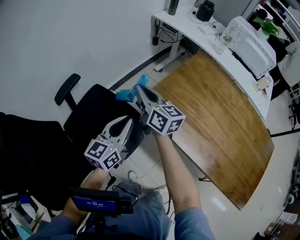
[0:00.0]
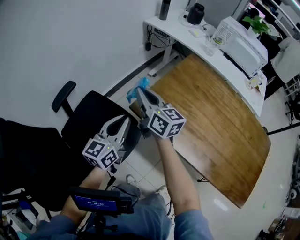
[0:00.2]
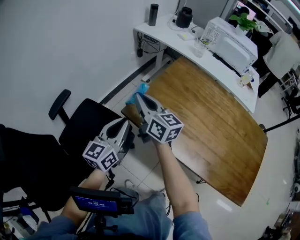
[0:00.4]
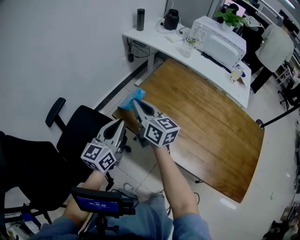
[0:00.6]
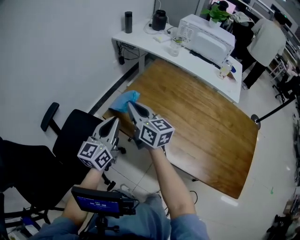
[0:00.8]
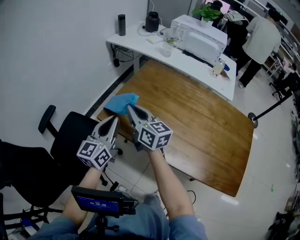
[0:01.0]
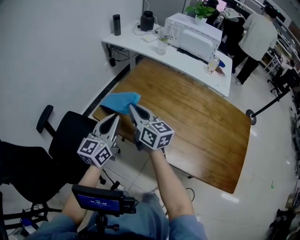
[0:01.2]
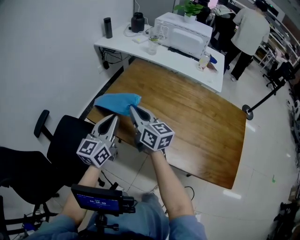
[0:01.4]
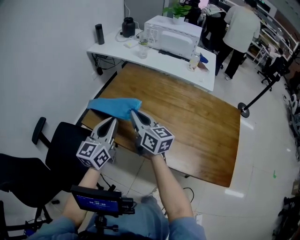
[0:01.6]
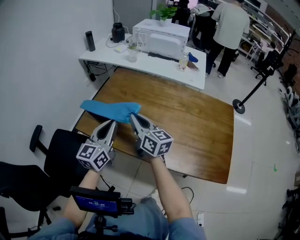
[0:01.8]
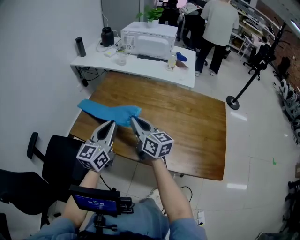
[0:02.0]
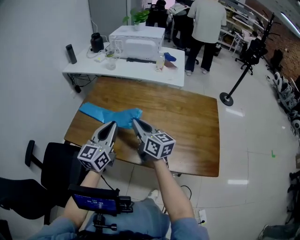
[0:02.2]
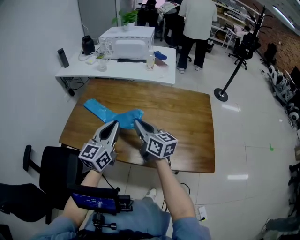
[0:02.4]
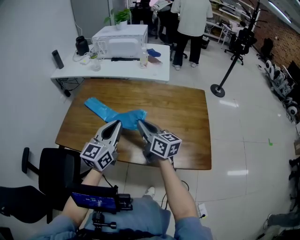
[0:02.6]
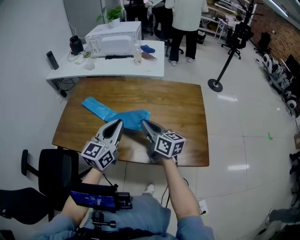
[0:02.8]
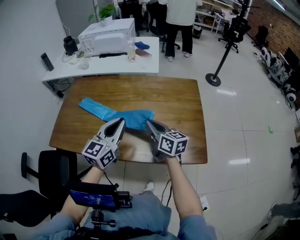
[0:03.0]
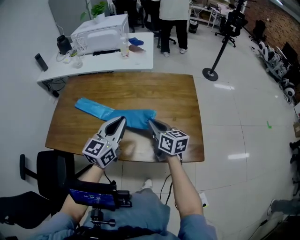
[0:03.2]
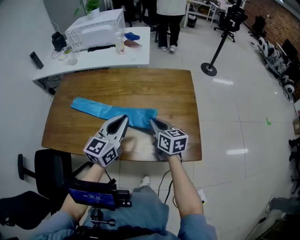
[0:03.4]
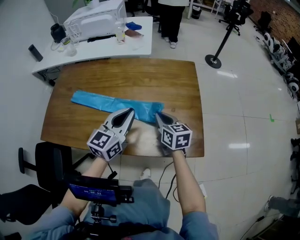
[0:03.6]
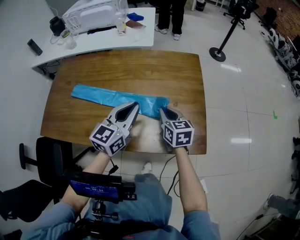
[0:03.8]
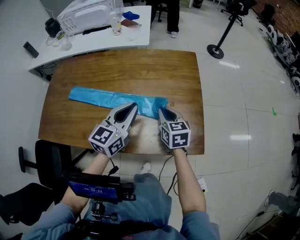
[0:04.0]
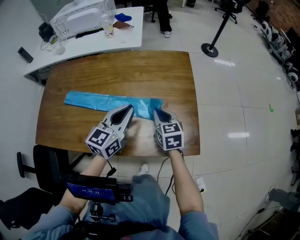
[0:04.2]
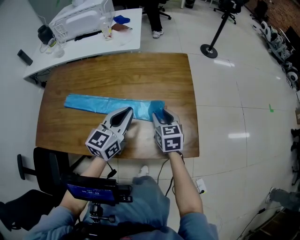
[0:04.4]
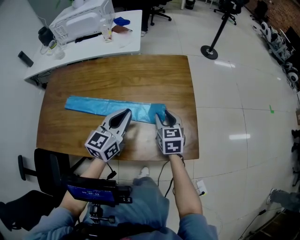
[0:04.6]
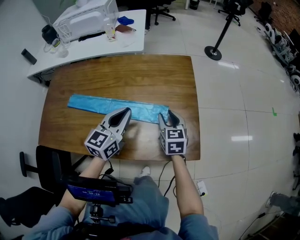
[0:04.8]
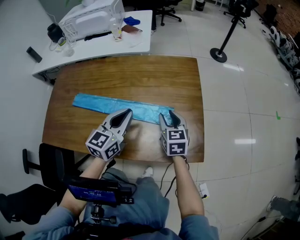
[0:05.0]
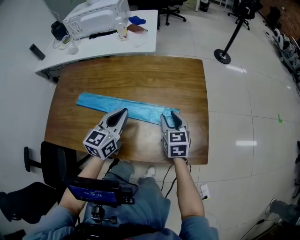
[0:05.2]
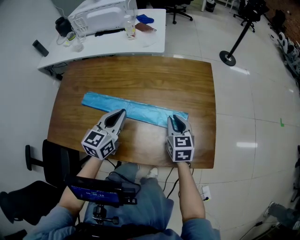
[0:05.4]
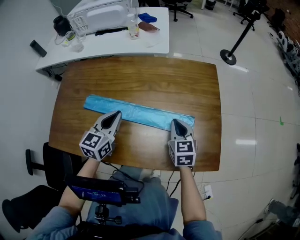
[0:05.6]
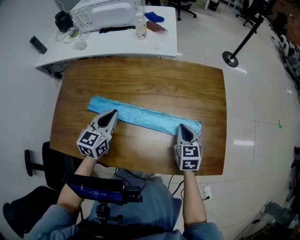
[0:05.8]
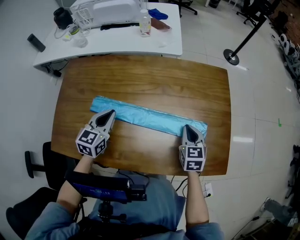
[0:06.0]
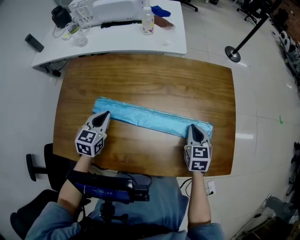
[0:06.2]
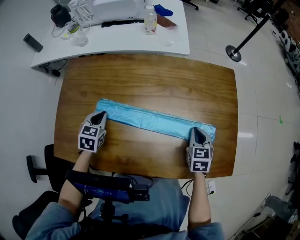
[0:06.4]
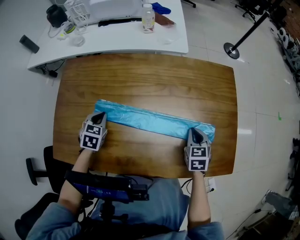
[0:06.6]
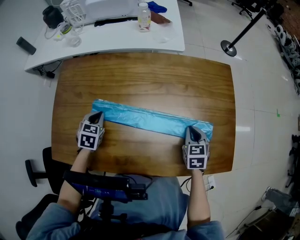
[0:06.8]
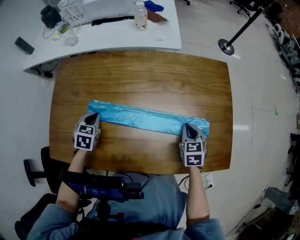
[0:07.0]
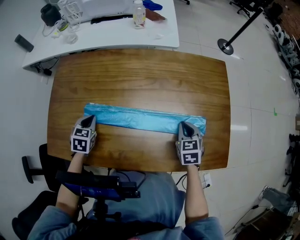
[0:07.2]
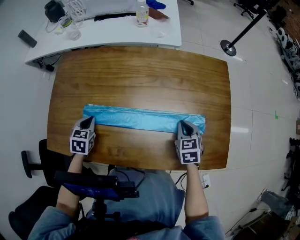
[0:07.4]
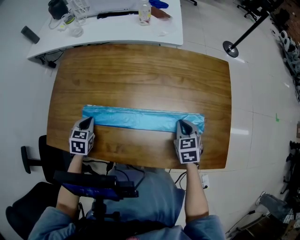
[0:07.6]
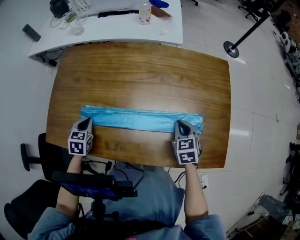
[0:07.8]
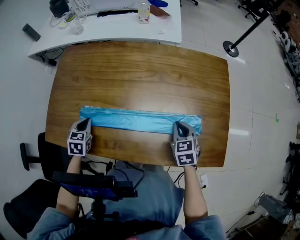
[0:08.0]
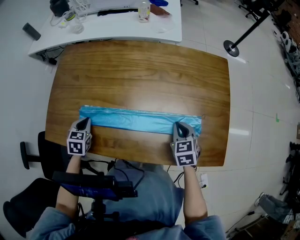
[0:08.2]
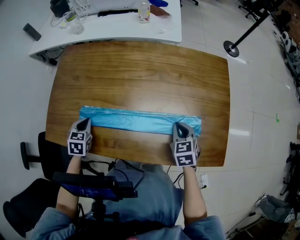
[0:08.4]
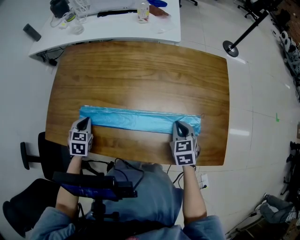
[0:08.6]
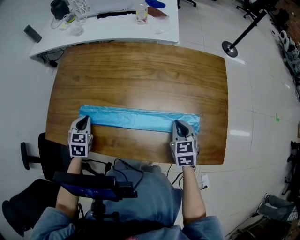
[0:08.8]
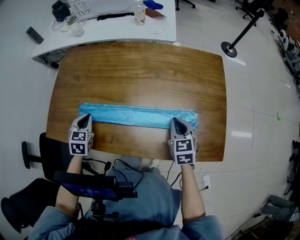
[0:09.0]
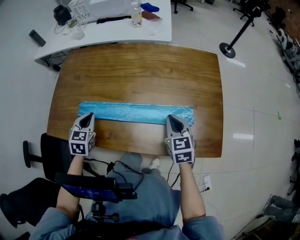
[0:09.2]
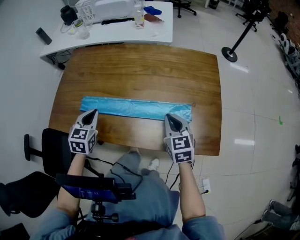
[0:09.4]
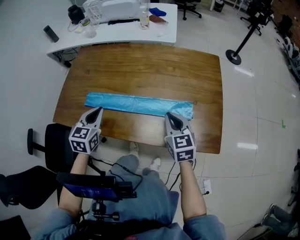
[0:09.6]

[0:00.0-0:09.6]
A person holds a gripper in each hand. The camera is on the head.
0:00.0 to 0:01.6: The grippers both shift to the right by roughly 30 cm.
0:01.6 to 0:03.2: Both grippers travel together to the right, approximately 35 cm. The left gripper swivels some 30 degrees. Meanwhile the right gripper changes its angle by about 30 degrees.
0:03.2 to 0:04.8: The right gripper heads to the right and downward, covering about 15 cm, turns by about 30 degrees, and opens up. Meanwhile the left gripper moves to the right, downward and forward, about 10 cm.
0:04.8 to 0:06.4: The left gripper moves to the left, roughly 35 cm, and tilts its fingers approximately 30 degrees downward. Meanwhile the right gripper heads to the left, covering approximately 10 cm, and closes its fingers.
0:06.4 to 0:08.0: The right gripper changes place by approximately 5 cm, while the left gripper is displaced backward by approximately 10 cm.
0:08.0 to 0:09.6: The left gripper goes some 20 cm upward, to the right and backward, and swivels about 20 degrees; the right gripper heads upward and backward, covering about 10 cm, and changes its angle by roughly 20 degrees.

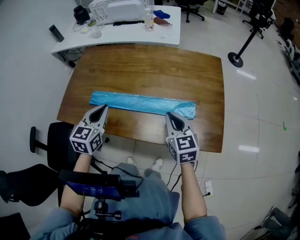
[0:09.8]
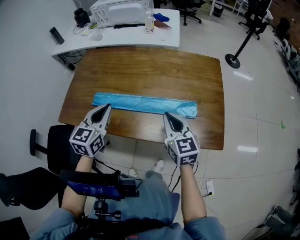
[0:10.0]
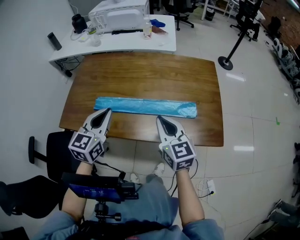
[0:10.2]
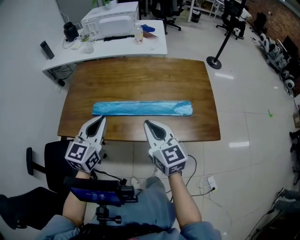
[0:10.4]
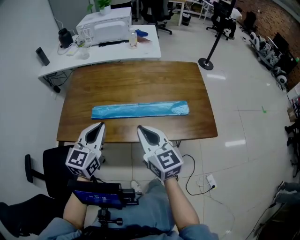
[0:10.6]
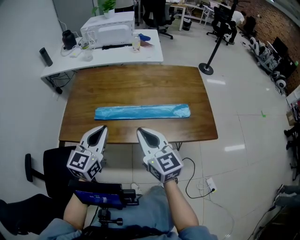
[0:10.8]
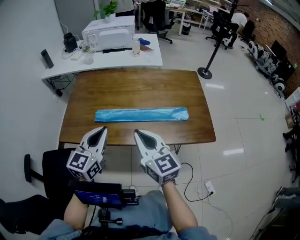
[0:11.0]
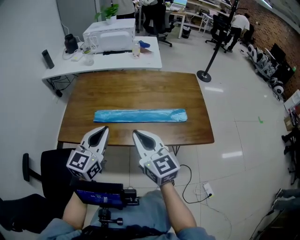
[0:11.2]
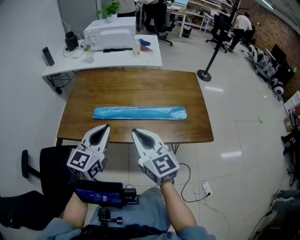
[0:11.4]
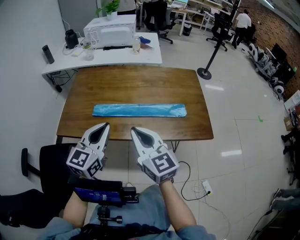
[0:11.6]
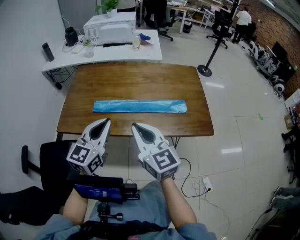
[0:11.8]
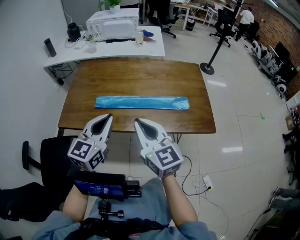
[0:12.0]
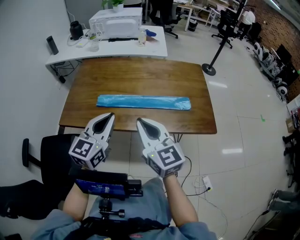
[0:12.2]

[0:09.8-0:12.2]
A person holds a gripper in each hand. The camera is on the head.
0:09.8 to 0:11.0: The right gripper is displaced to the left, upward and backward by some 25 cm, while the left gripper is displaced backward, upward and to the left by about 15 cm, and rotates approximately 20 degrees.
0:11.0 to 0:12.2: The grippers make only small movements.

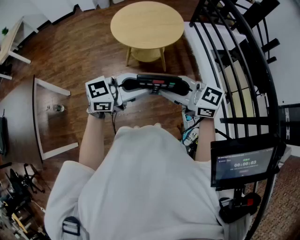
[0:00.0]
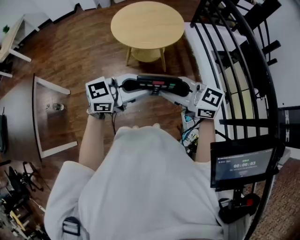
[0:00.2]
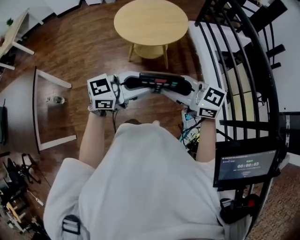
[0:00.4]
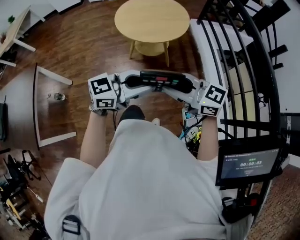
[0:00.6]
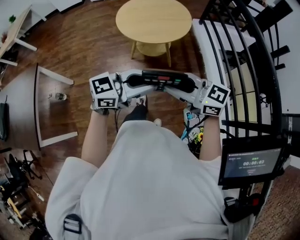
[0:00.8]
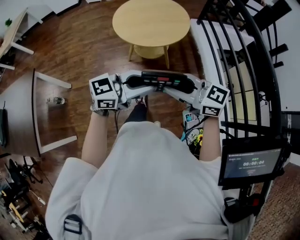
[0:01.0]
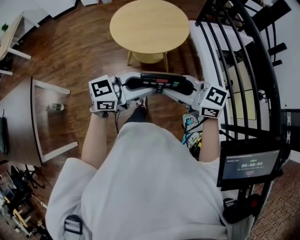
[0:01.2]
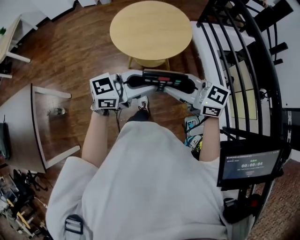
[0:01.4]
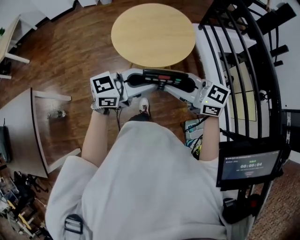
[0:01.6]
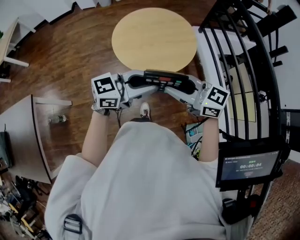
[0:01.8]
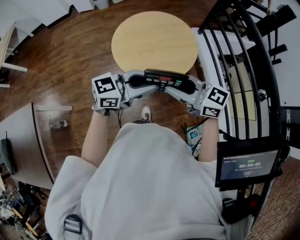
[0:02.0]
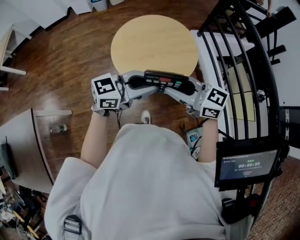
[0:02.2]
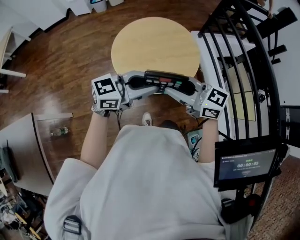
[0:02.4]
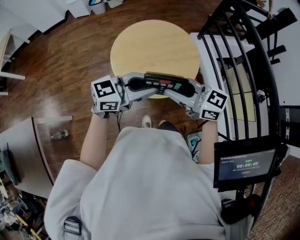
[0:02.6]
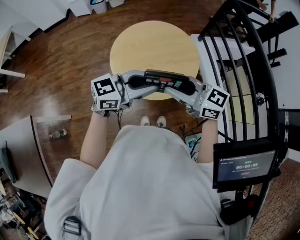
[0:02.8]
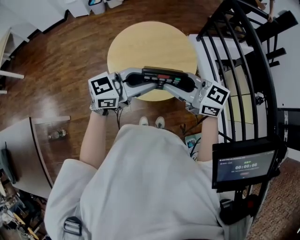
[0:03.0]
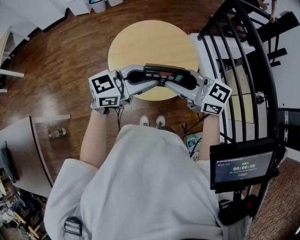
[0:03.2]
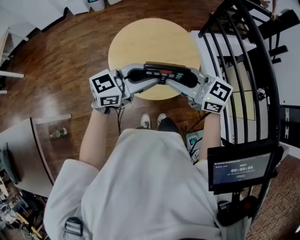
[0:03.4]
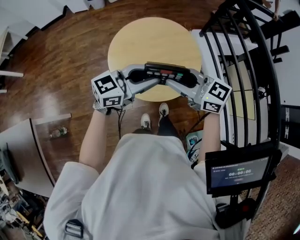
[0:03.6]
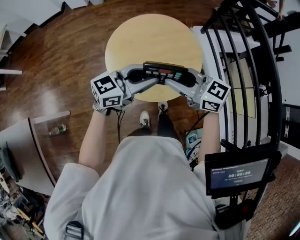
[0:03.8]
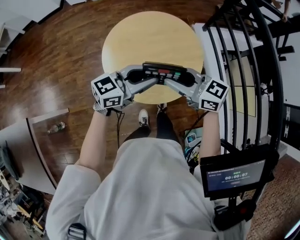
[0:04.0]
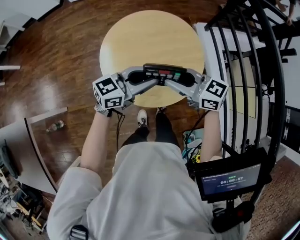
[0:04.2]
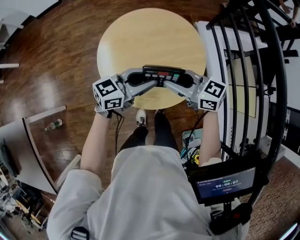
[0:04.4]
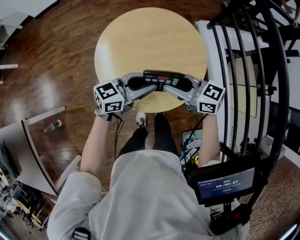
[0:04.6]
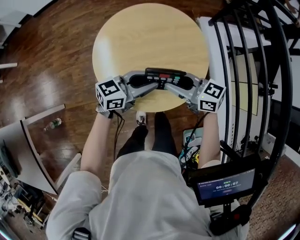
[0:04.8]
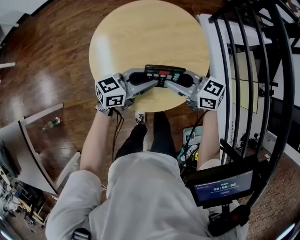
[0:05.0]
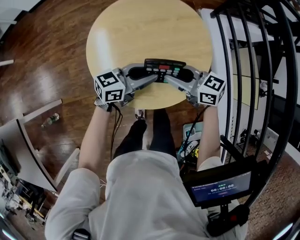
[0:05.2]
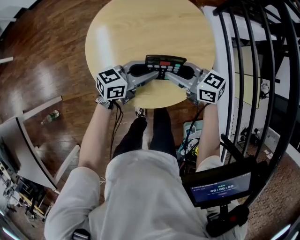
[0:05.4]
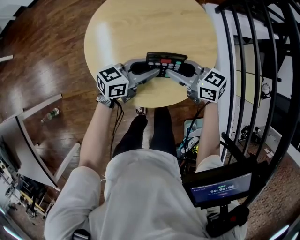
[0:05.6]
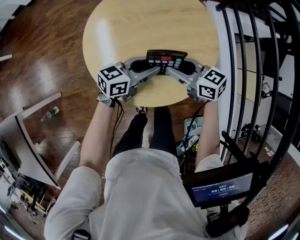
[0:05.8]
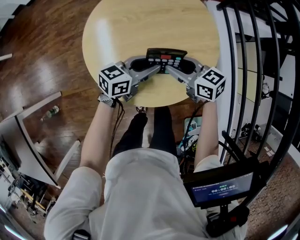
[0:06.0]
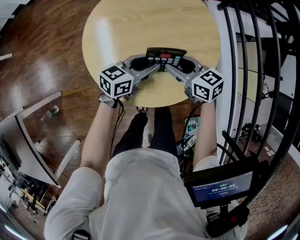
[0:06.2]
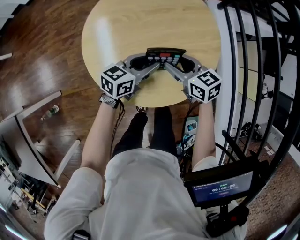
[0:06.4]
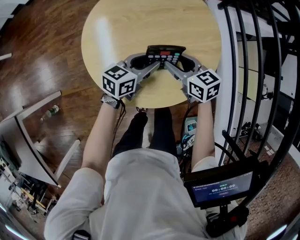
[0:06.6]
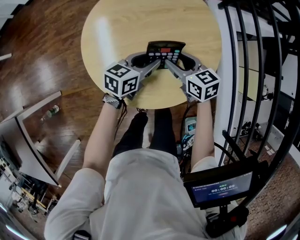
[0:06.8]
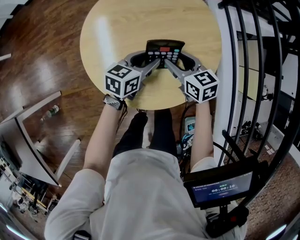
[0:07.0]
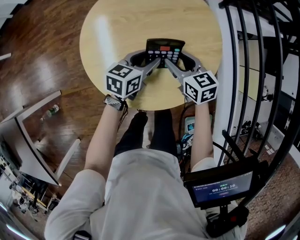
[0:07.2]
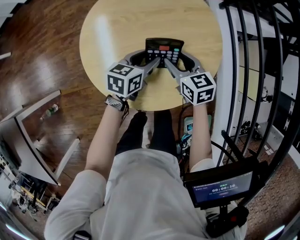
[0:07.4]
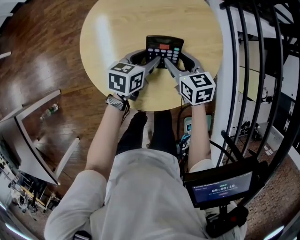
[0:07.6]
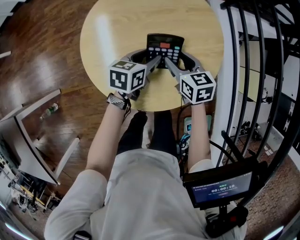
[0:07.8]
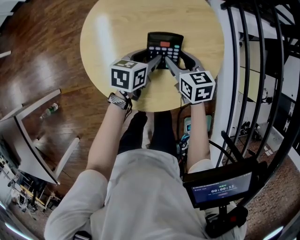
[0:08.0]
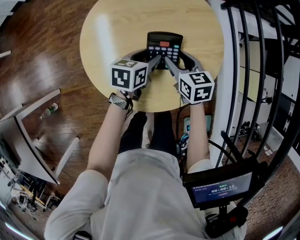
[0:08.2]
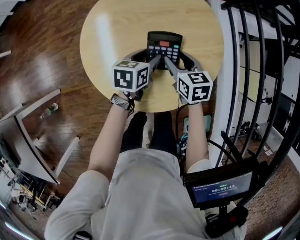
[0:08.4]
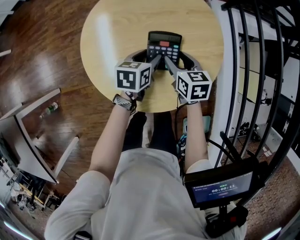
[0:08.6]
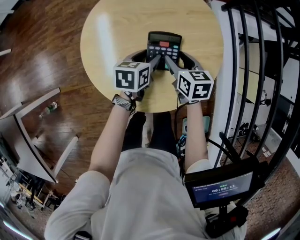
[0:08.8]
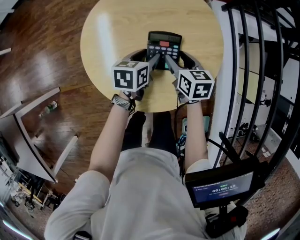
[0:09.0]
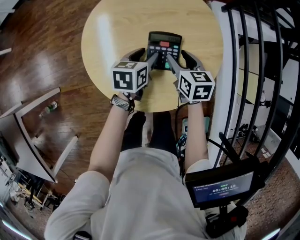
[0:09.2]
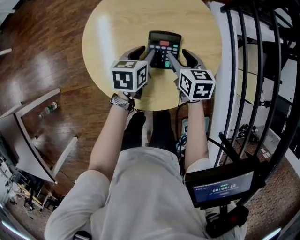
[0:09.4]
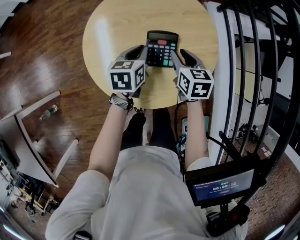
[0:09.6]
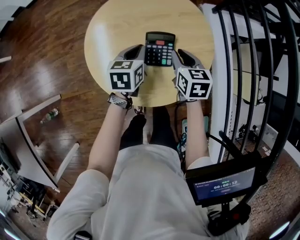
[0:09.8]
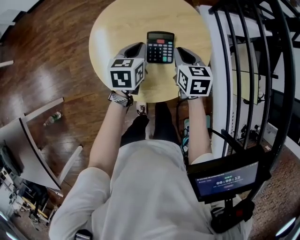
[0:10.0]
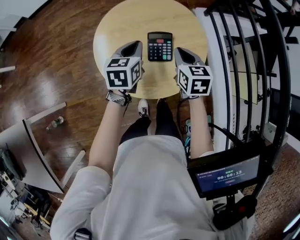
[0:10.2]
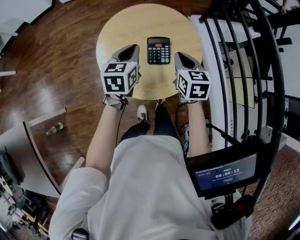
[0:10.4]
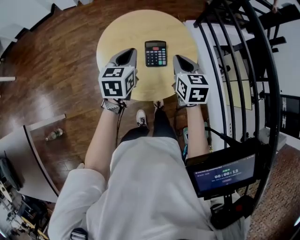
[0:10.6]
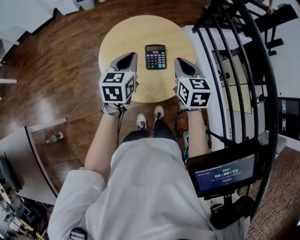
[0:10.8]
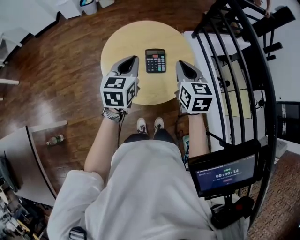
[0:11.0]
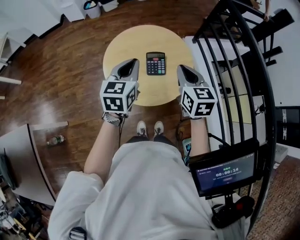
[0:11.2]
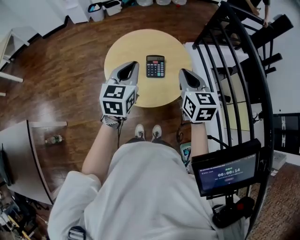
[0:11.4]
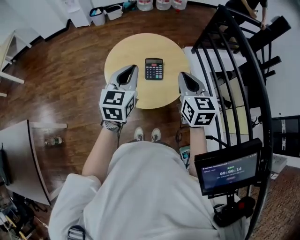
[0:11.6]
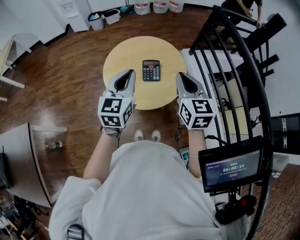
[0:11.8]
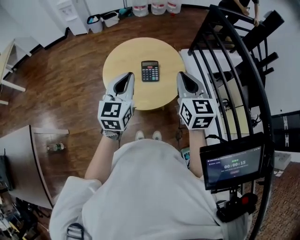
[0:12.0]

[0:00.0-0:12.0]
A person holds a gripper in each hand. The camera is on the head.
0:00.0 to 0:01.6: The right gripper ends up some 15 cm from where it was. Meanwhile the left gripper moves approximately 15 cm.
0:01.6 to 0:03.0: The right gripper ends up approximately 15 cm from where it was, while the left gripper ends up roughly 15 cm from where it was.
0:03.0 to 0:04.4: The two grippers go approximately 15 cm downward.
0:04.4 to 0:06.0: Both grippers travel together downward, approximately 15 cm.
0:06.0 to 0:07.6: The right gripper shifts by about 5 cm, and swivels approximately 30 degrees. The left gripper moves approximately 5 cm, and changes its angle by roughly 30 degrees.
0:07.6 to 0:09.0: The grippers stay close to where they were, moving slightly.
0:09.0 to 0:10.4: The grippers both shift upward by roughly 20 cm. The right gripper swivels some 20 degrees, and closes up, while the left gripper changes its angle by some 30 degrees, and closes.
0:10.4 to 0:12.0: The grippers both shift upward and backward by approximately 20 cm. The right gripper swivels approximately 20 degrees. Meanwhile the left gripper rotates approximately 30 degrees.
